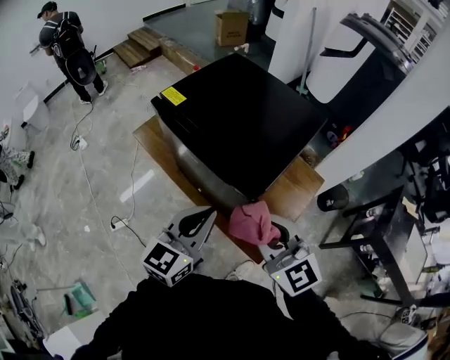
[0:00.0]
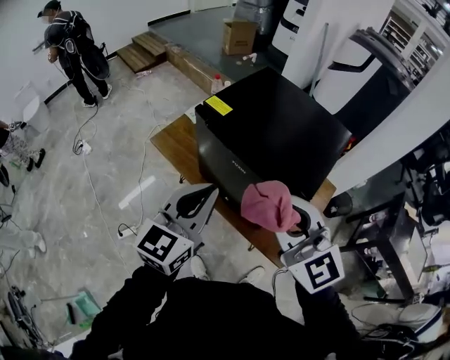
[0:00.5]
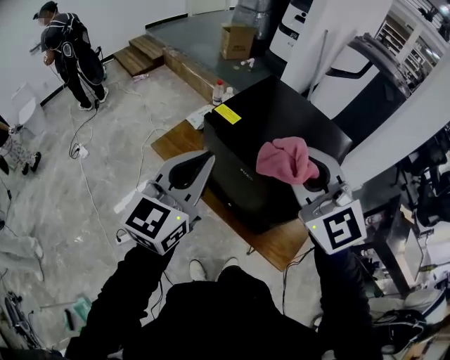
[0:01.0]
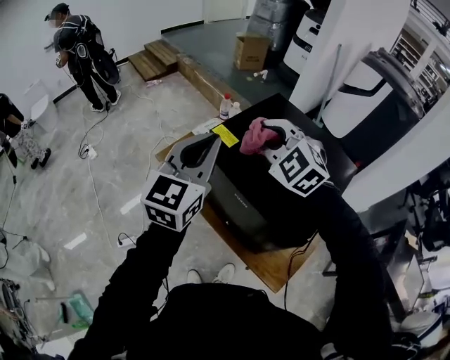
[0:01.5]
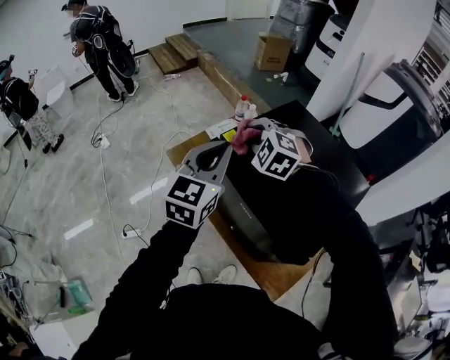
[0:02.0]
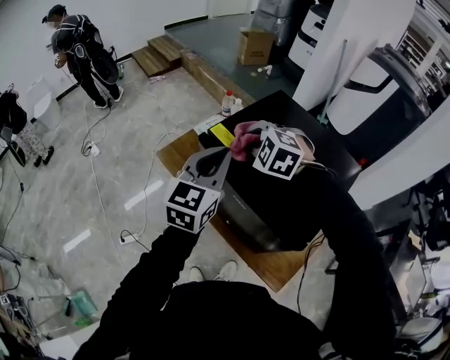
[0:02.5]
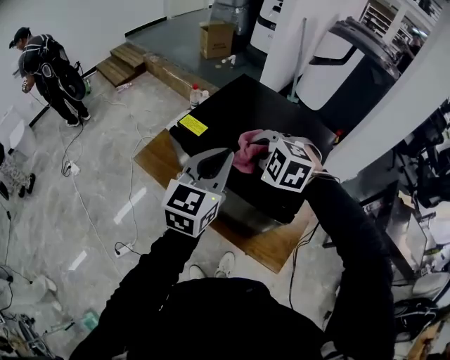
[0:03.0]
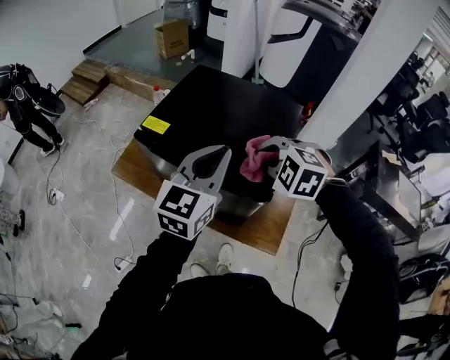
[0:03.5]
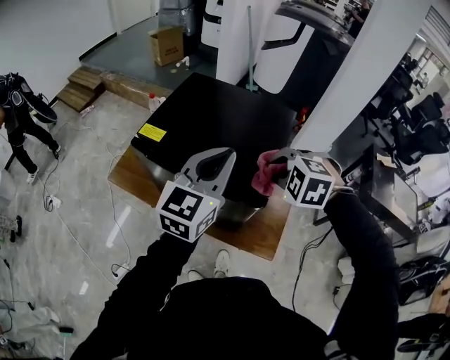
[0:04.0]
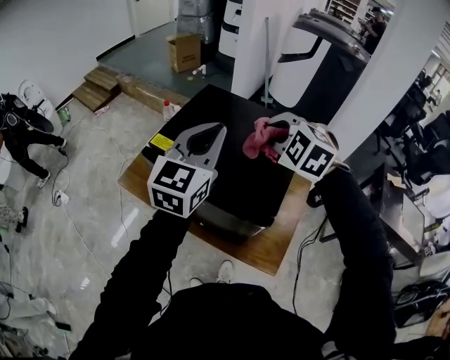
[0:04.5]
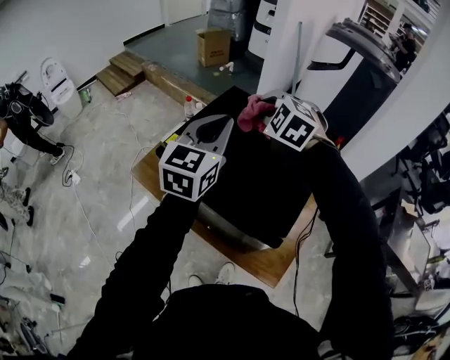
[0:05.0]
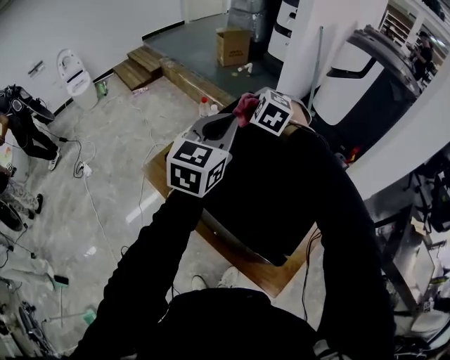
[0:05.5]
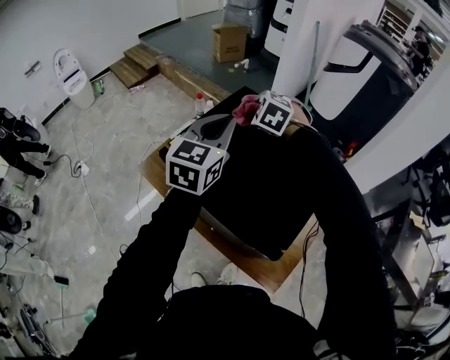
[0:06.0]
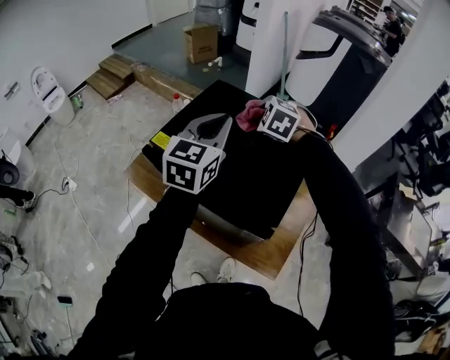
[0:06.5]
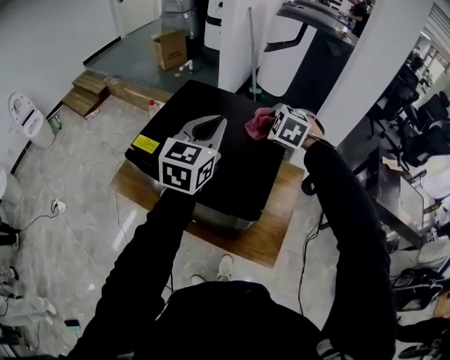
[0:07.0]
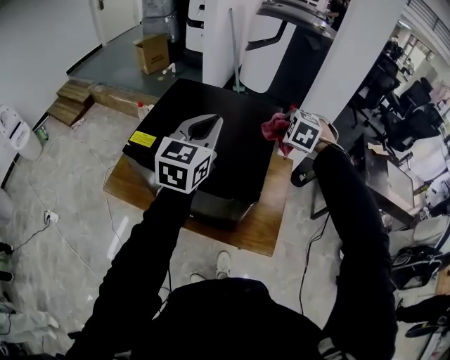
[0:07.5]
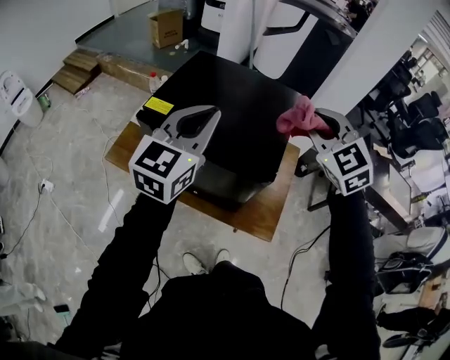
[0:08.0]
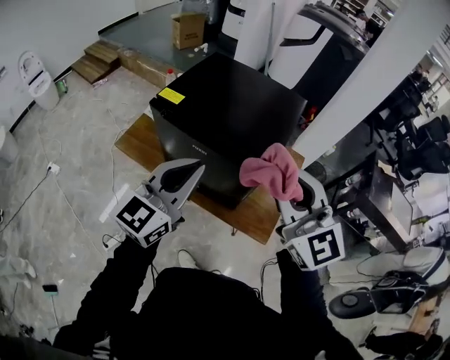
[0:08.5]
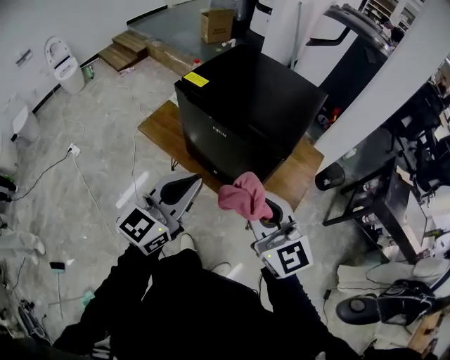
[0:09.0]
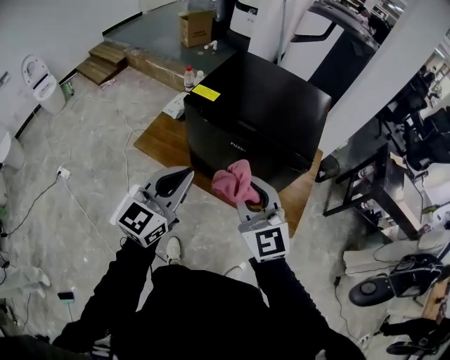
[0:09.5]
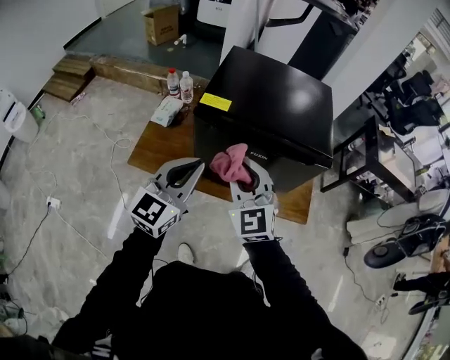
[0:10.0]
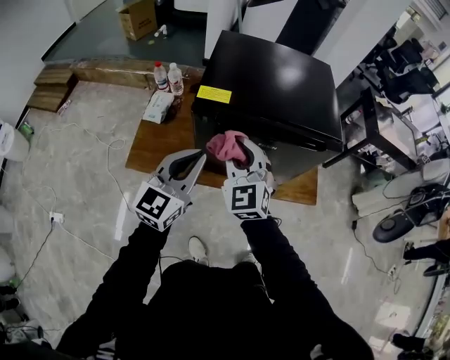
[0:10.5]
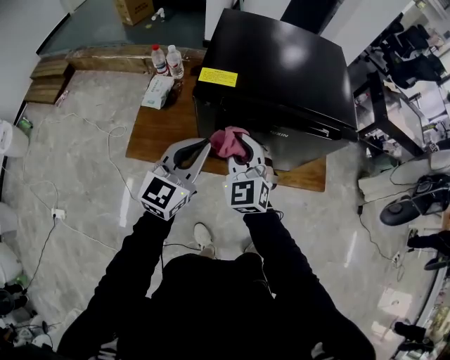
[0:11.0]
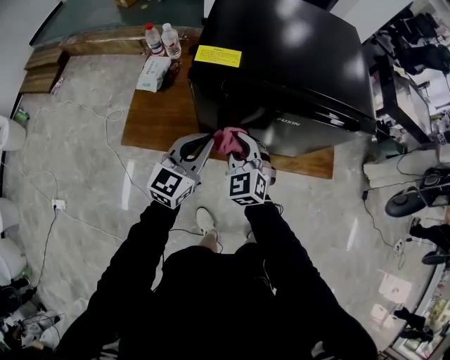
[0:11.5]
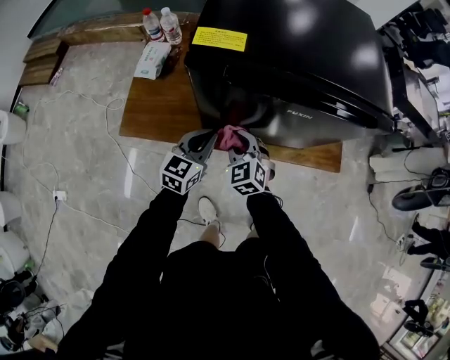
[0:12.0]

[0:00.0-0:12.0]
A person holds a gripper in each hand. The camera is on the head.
0:00.0 to 0:02.0: Both grippers travel together forward and to the left, about 40 cm. The right gripper angles its fingers downward, by roughly 30 degrees; the left gripper rotates some 20 degrees.
0:02.0 to 0:04.0: The right gripper ends up approximately 35 cm from where it was, and rotates approximately 30 degrees. Meanwhile the left gripper changes place by about 25 cm, and turns by some 30 degrees.
0:04.0 to 0:06.0: The right gripper is displaced forward and to the left by approximately 35 cm; the left gripper goes some 20 cm forward and to the left, and turns by approximately 20 degrees.
0:06.0 to 0:08.0: The left gripper ends up some 20 cm from where it was, and rotates roughly 20 degrees. The right gripper changes place by roughly 40 cm, and rotates about 40 degrees.
0:08.0 to 0:10.0: Both grippers travel together to the left and downward, some 35 cm. The right gripper rotates about 20 degrees.
0:10.0 to 0:12.0: The grippers both shift downward by some 30 cm. The left gripper rotates some 20 degrees. Meanwhile the right gripper swivels some 30 degrees.

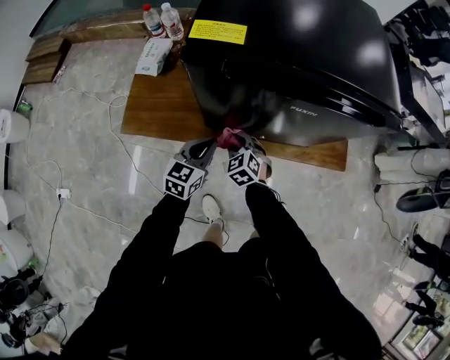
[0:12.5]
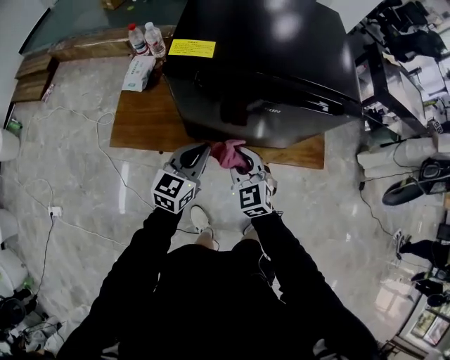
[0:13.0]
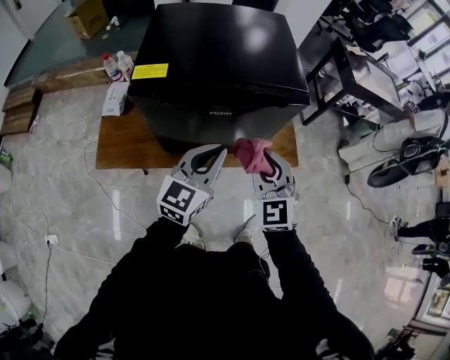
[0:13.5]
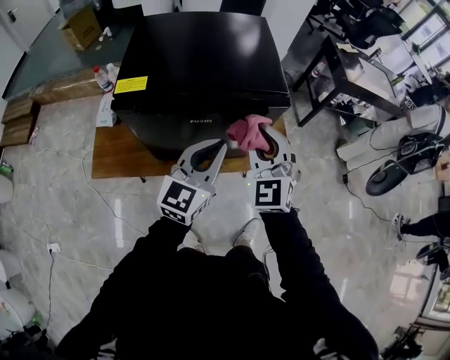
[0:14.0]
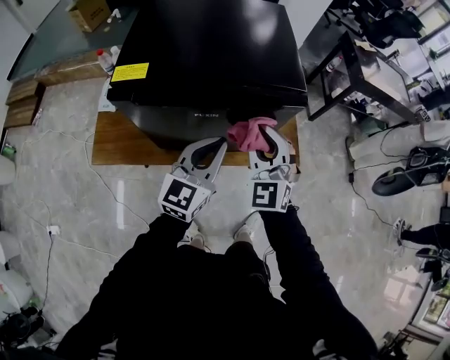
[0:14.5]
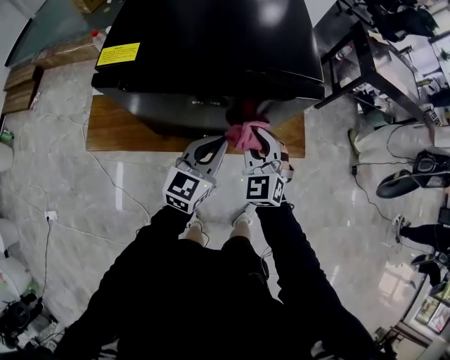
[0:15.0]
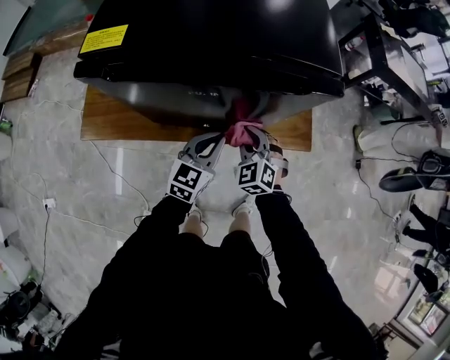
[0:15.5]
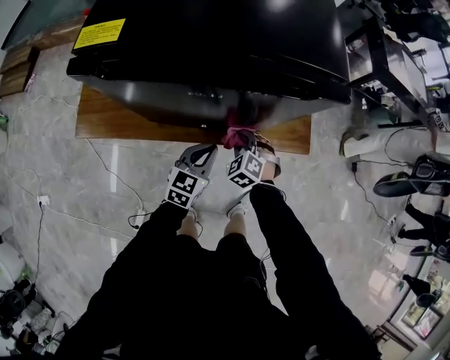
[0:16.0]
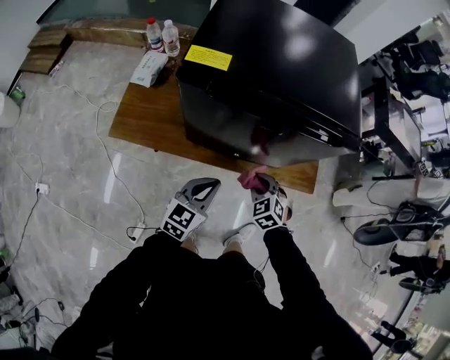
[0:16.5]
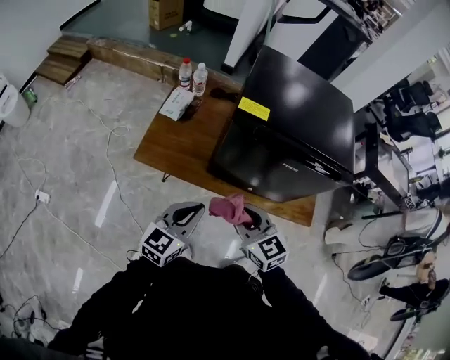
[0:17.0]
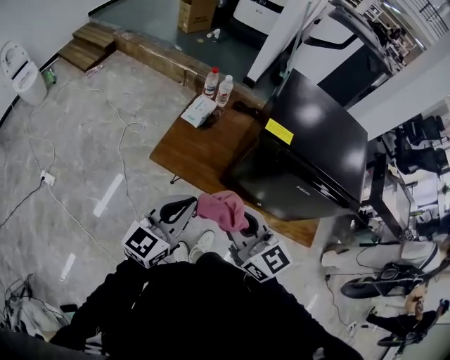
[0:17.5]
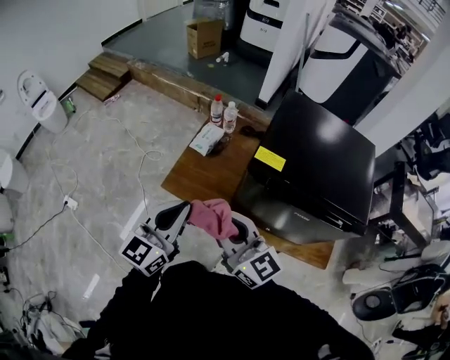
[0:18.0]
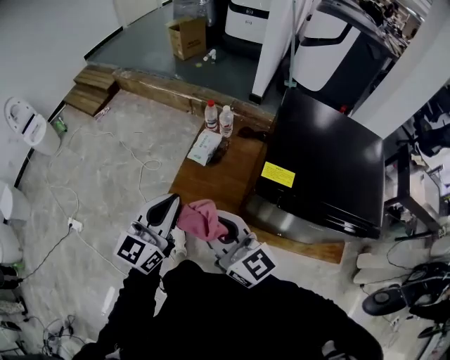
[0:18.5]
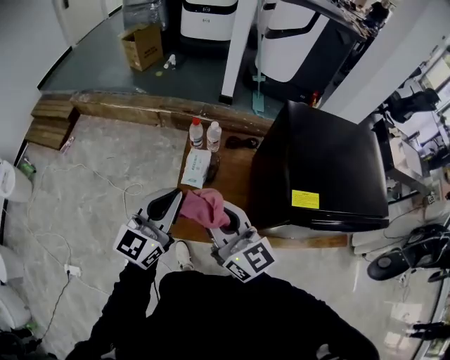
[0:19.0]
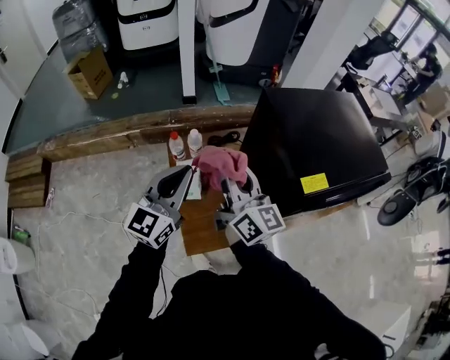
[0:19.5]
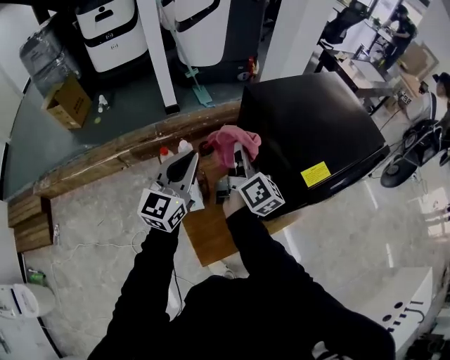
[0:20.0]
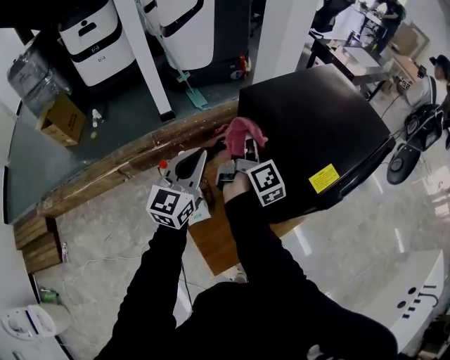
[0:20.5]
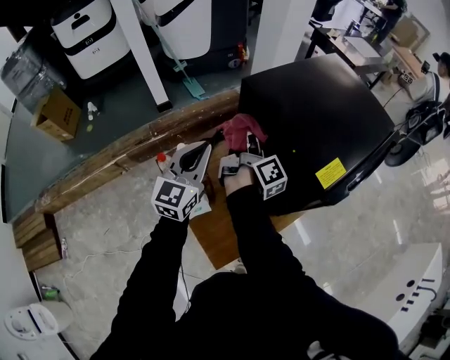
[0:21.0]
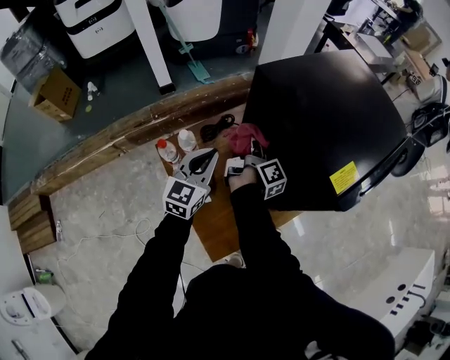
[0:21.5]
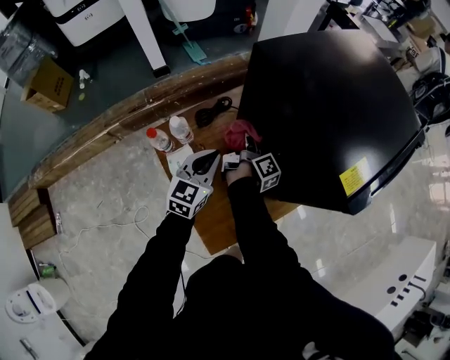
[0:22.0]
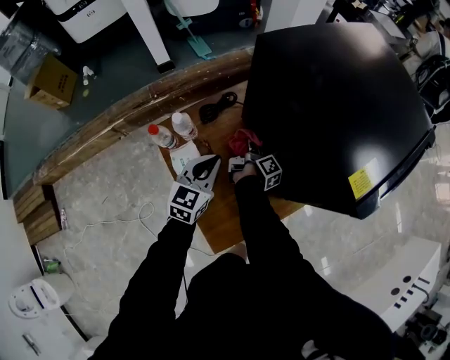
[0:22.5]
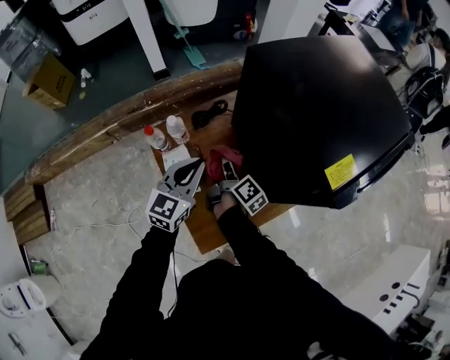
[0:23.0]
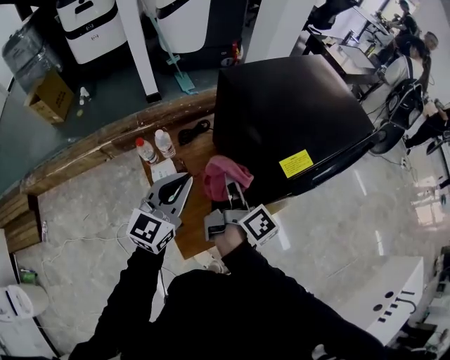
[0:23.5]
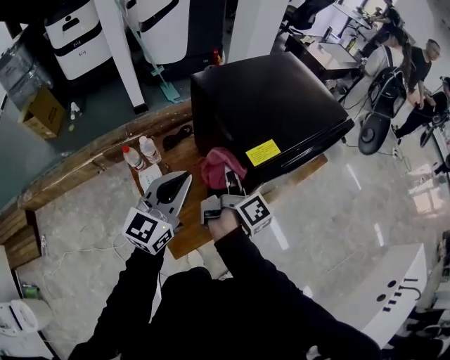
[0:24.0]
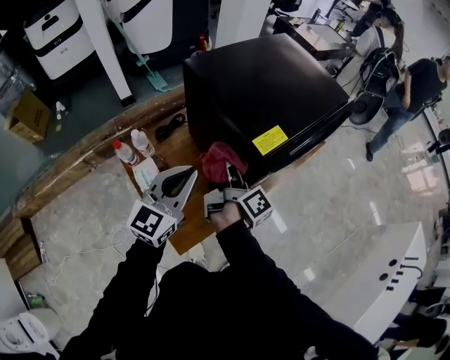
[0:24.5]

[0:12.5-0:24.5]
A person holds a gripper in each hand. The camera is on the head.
0:12.5 to 0:14.5: Both grippers travel together upward and to the right, approximately 35 cm. The left gripper rotates some 20 degrees, while the right gripper points its fingers roughly 40 degrees further upward.
0:14.5 to 0:16.5: The left gripper goes roughly 20 cm downward, to the left and backward. Meanwhile the right gripper goes approximately 25 cm downward, and points its fingers about 40 degrees further downward.
0:16.5 to 0:18.5: The right gripper ends up roughly 50 cm from where it was, and points its fingers some 60 degrees further upward. Meanwhile the left gripper moves about 40 cm, and turns by roughly 30 degrees.
0:18.5 to 0:20.5: The right gripper moves roughly 40 cm, and turns by roughly 100 degrees; the left gripper shifts by about 40 cm, and swivels approximately 50 degrees.
0:20.5 to 0:22.5: The right gripper goes about 35 cm downward, and swivels about 30 degrees. The left gripper shifts some 25 cm downward, and turns by roughly 20 degrees.
0:22.5 to 0:24.5: The right gripper moves upward, backward and to the right, approximately 35 cm, and changes its angle by approximately 20 degrees; the left gripper heads upward and to the right, covering approximately 25 cm, and turns by some 20 degrees.

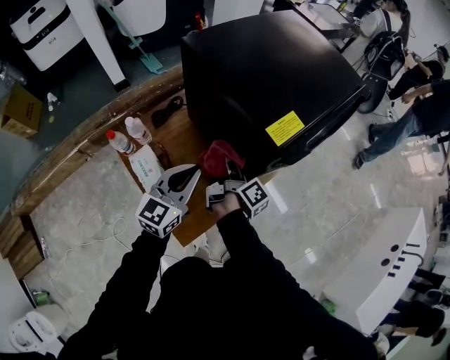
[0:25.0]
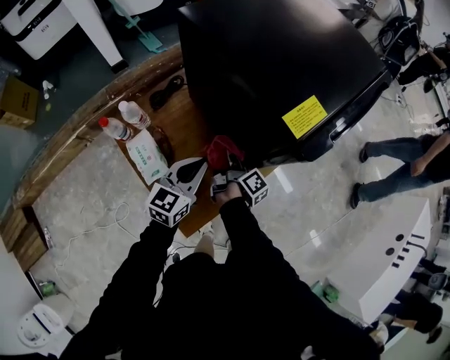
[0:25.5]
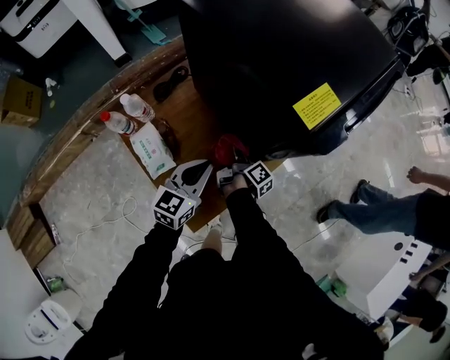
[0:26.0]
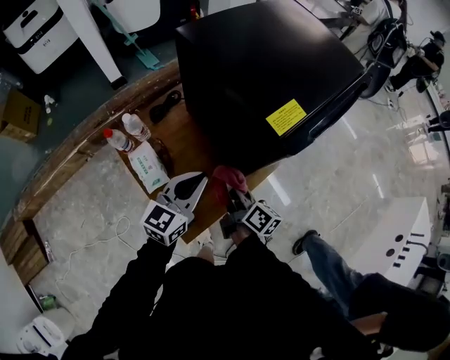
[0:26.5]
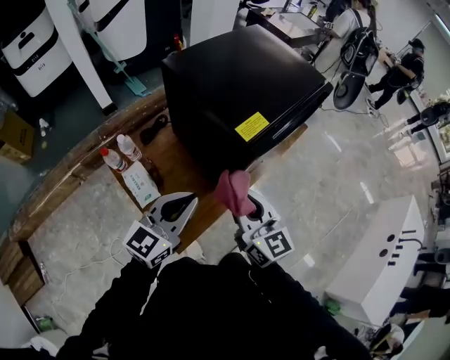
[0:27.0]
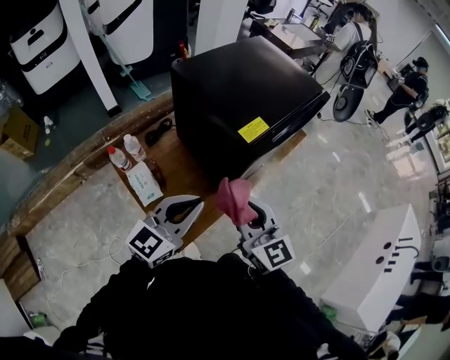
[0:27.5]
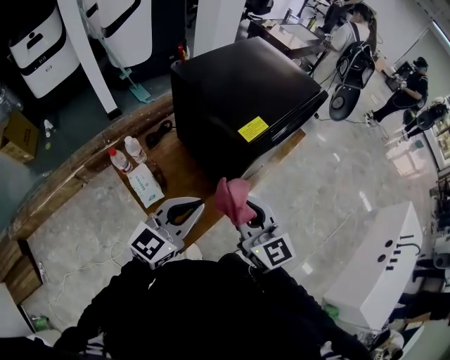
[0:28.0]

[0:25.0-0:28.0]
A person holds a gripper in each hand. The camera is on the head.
0:25.0 to 0:26.5: The right gripper goes about 10 cm backward, reaches roughly 20 cm downward, then returns, and turns by approximately 30 degrees. The left gripper moves some 15 cm downward and comes back.
0:26.5 to 0:28.0: The right gripper goes some 25 cm upward, and rotates around the line of its fingers by roughly 60 degrees, counterclockwise from behind, while the left gripper heads upward and backward, covering roughly 15 cm.
